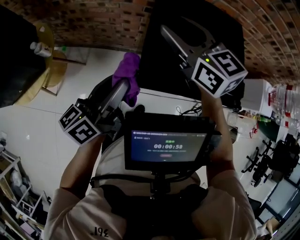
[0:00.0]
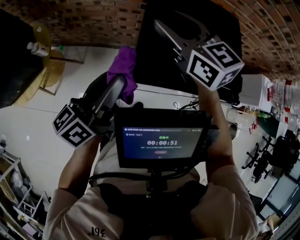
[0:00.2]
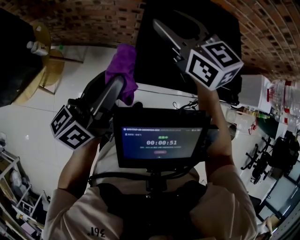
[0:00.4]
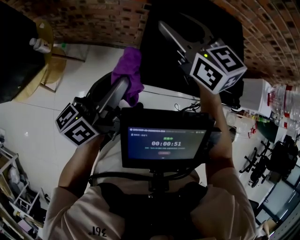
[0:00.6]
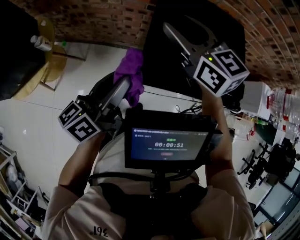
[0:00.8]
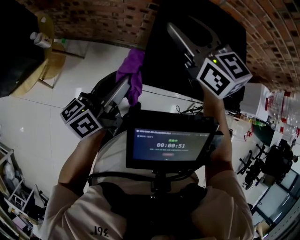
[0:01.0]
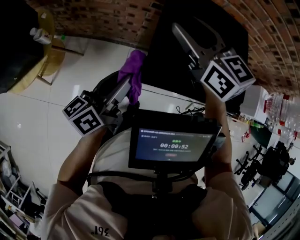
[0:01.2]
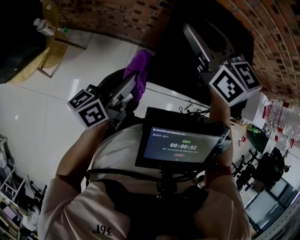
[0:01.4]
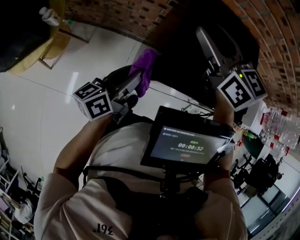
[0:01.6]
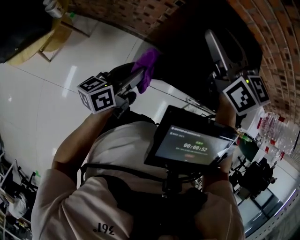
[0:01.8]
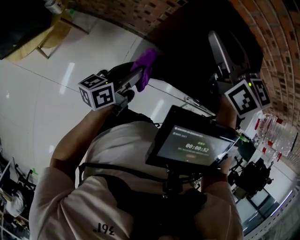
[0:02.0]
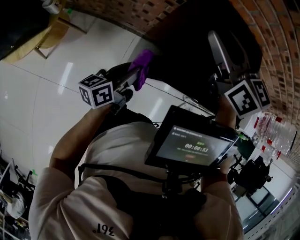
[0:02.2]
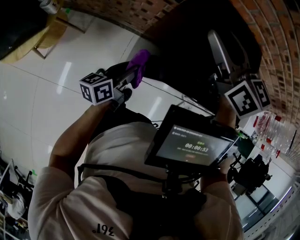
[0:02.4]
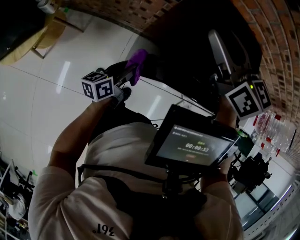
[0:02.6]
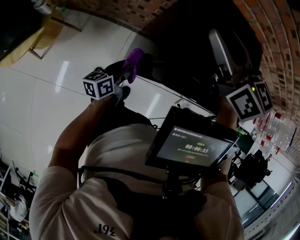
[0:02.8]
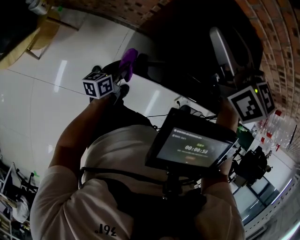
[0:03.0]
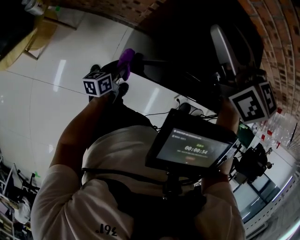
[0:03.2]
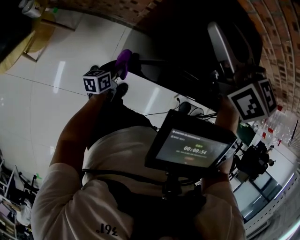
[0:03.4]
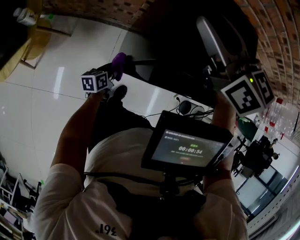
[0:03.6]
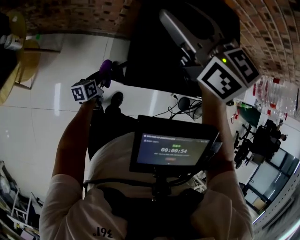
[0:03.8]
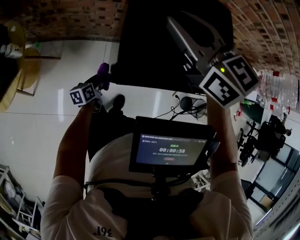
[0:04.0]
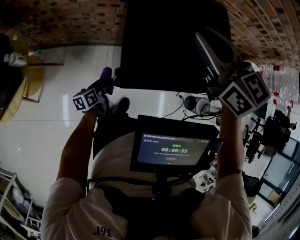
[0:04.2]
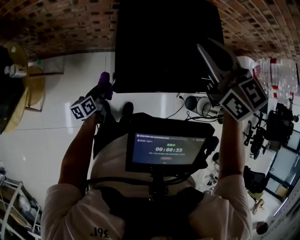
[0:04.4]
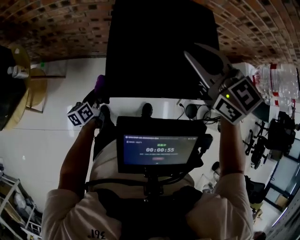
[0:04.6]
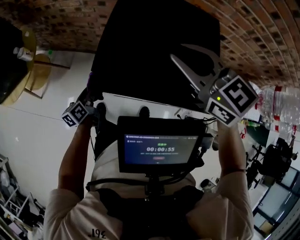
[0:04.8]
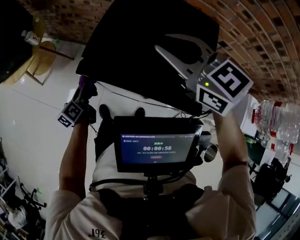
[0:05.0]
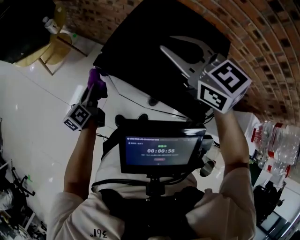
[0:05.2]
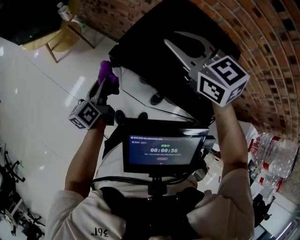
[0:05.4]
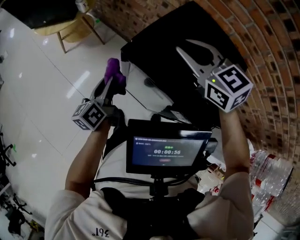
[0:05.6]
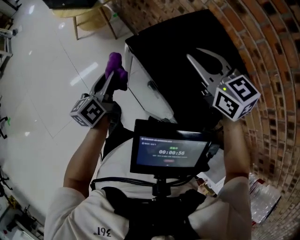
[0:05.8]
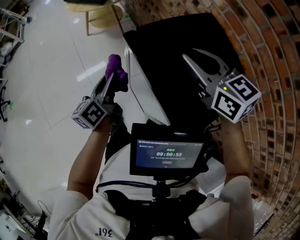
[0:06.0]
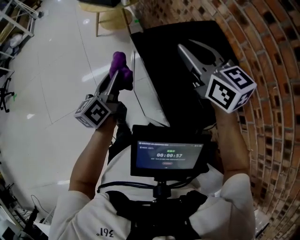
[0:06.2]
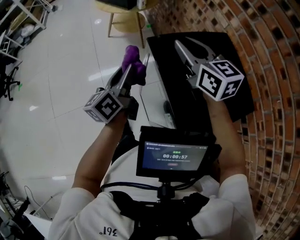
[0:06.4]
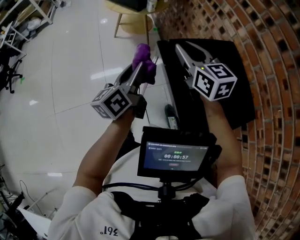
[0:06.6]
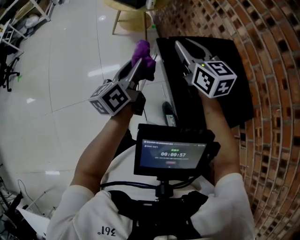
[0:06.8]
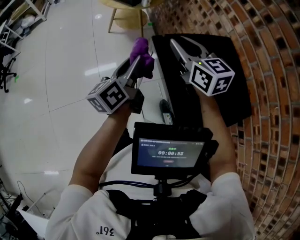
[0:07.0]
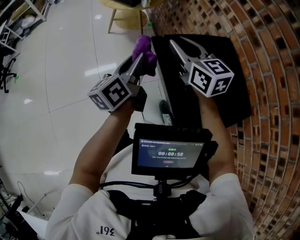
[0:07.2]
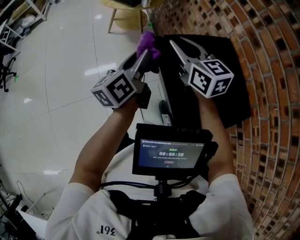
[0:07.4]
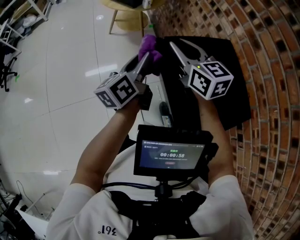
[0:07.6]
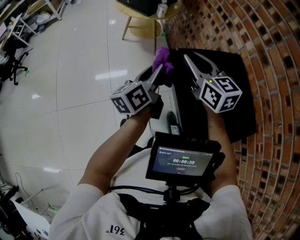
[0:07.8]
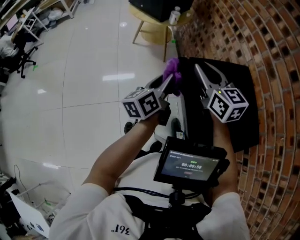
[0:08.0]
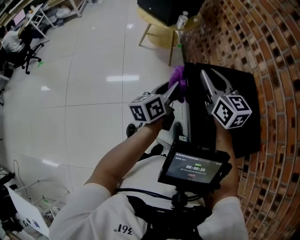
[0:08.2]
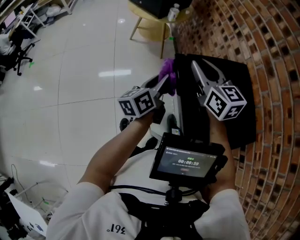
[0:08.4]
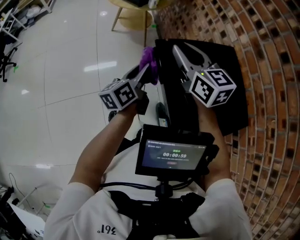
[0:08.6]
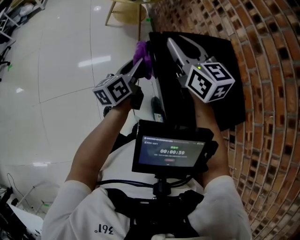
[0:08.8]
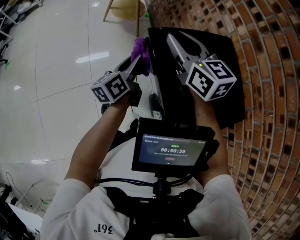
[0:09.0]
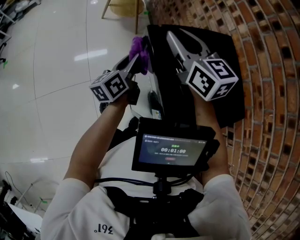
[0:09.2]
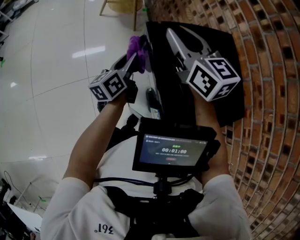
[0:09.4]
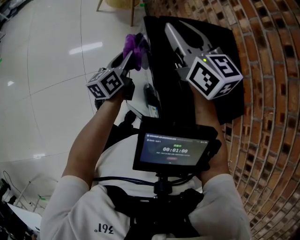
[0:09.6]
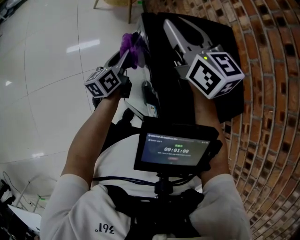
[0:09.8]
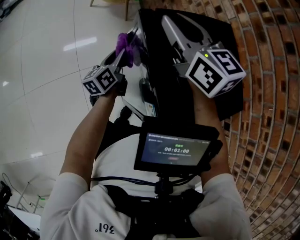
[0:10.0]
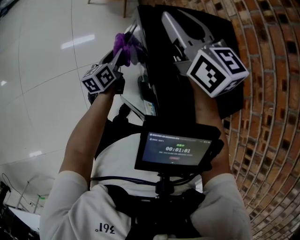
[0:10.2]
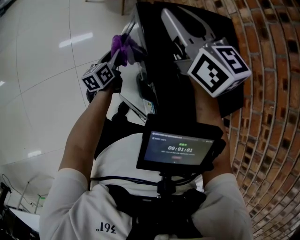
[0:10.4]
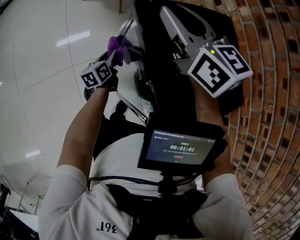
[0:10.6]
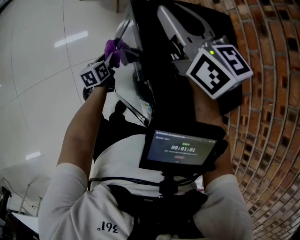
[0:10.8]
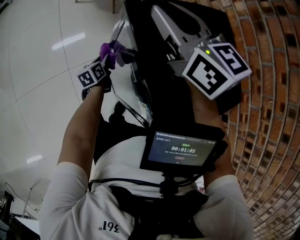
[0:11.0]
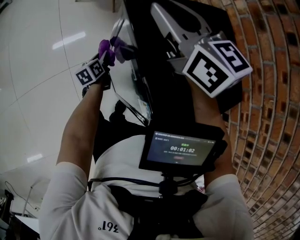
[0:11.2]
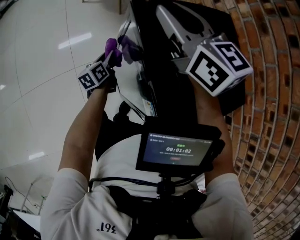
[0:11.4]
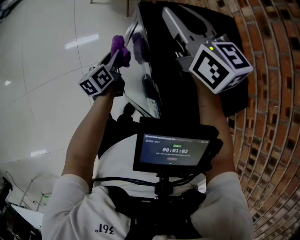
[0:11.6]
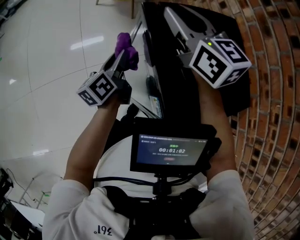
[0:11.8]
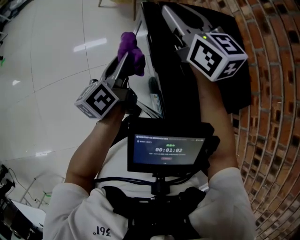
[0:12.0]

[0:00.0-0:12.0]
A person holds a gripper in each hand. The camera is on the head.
0:00.0 to 0:01.6: The left gripper moves downward, about 10 cm.
0:01.6 to 0:03.0: The left gripper heads downward, covering about 20 cm.
0:03.0 to 0:04.4: The right gripper travels to the right by some 15 cm, and closes up.
0:04.4 to 0:06.0: The left gripper is displaced upward by some 25 cm, and turns by roughly 80 degrees; the right gripper rotates approximately 60 degrees.
0:06.0 to 0:07.6: The left gripper moves upward, some 5 cm; the right gripper heads forward and to the left, covering about 10 cm.
0:07.6 to 0:09.0: The left gripper is displaced downward by roughly 10 cm.
0:09.0 to 0:10.4: The left gripper travels downward by approximately 15 cm.
0:10.4 to 0:12.0: The left gripper is displaced upward by approximately 20 cm.

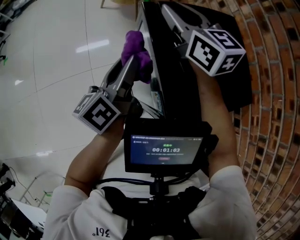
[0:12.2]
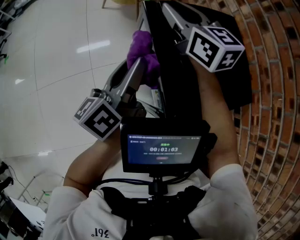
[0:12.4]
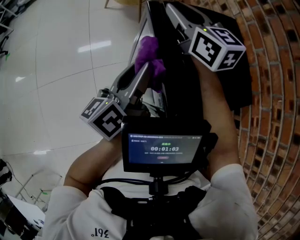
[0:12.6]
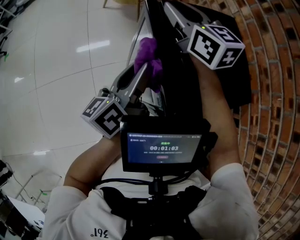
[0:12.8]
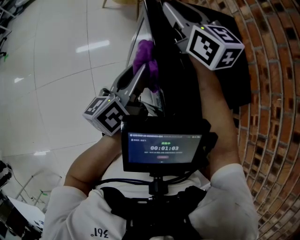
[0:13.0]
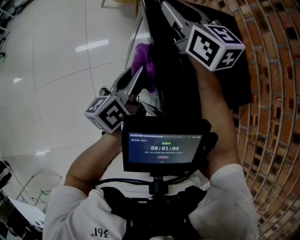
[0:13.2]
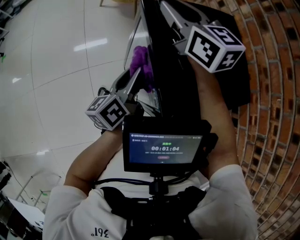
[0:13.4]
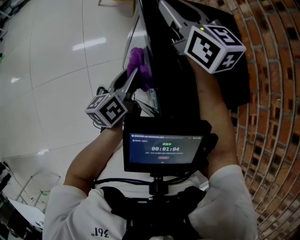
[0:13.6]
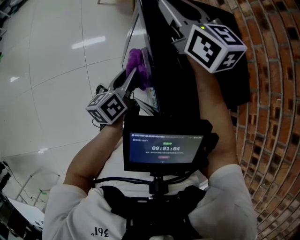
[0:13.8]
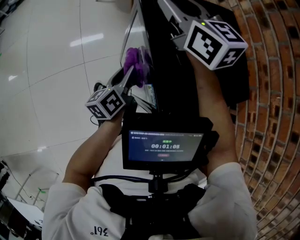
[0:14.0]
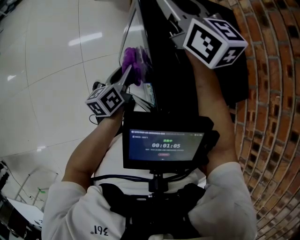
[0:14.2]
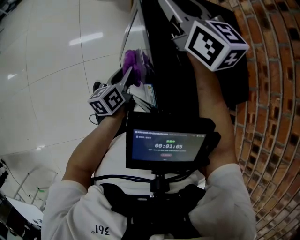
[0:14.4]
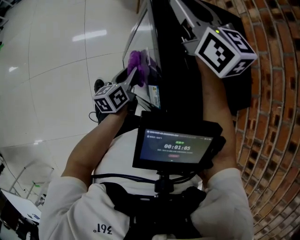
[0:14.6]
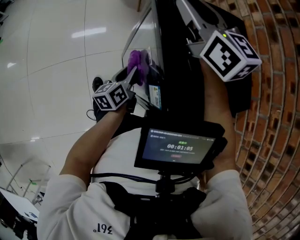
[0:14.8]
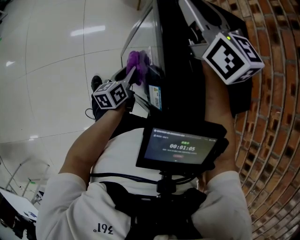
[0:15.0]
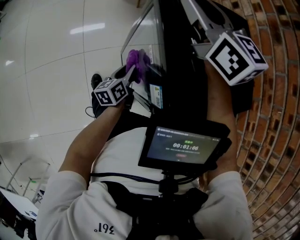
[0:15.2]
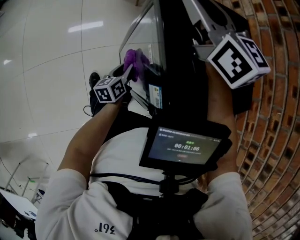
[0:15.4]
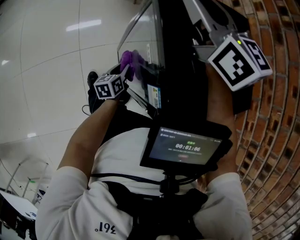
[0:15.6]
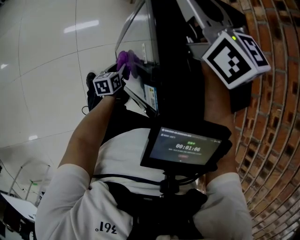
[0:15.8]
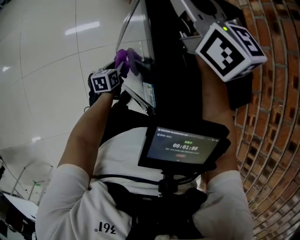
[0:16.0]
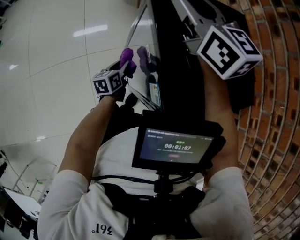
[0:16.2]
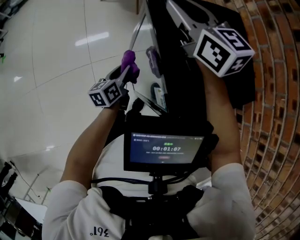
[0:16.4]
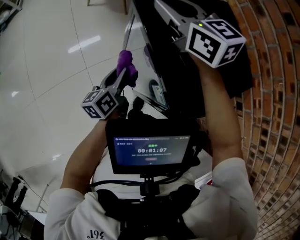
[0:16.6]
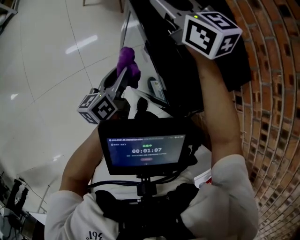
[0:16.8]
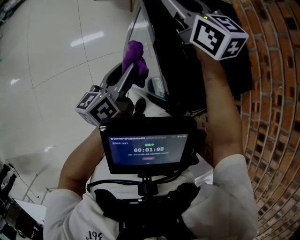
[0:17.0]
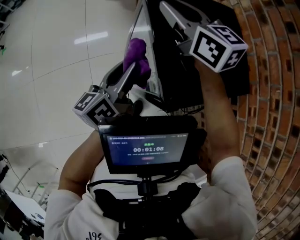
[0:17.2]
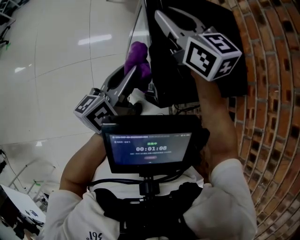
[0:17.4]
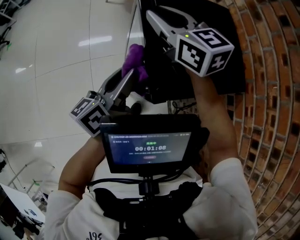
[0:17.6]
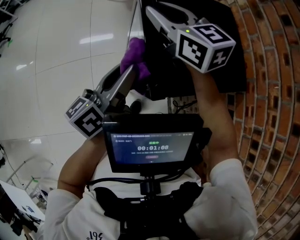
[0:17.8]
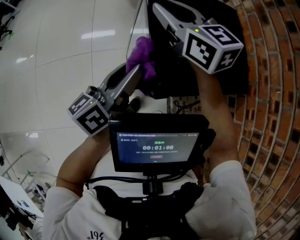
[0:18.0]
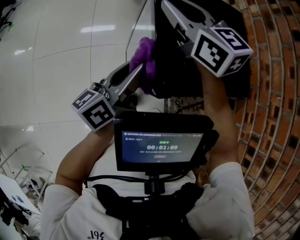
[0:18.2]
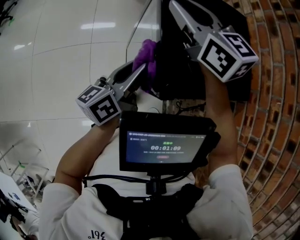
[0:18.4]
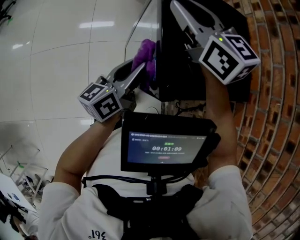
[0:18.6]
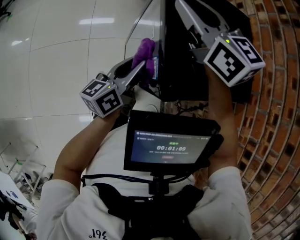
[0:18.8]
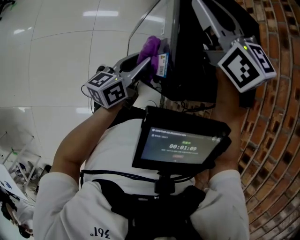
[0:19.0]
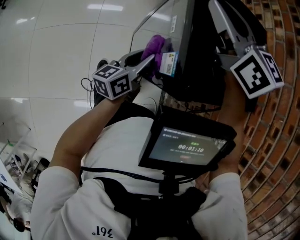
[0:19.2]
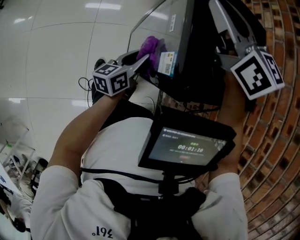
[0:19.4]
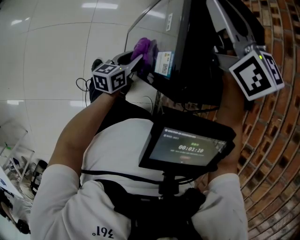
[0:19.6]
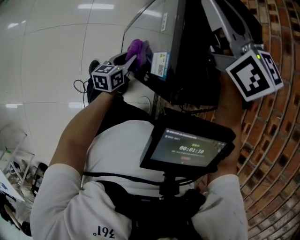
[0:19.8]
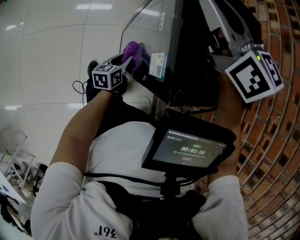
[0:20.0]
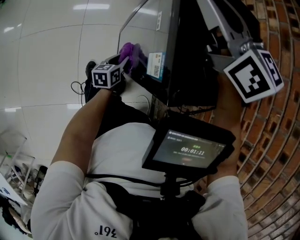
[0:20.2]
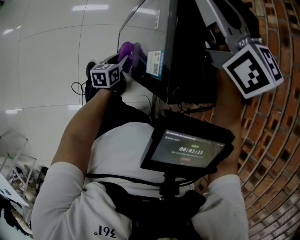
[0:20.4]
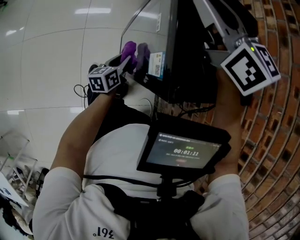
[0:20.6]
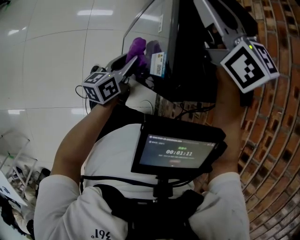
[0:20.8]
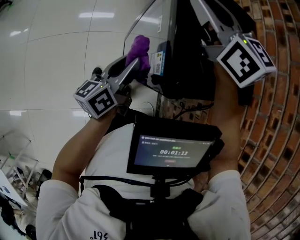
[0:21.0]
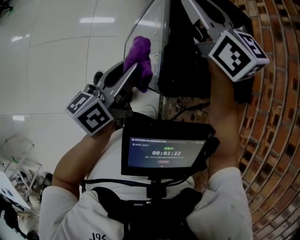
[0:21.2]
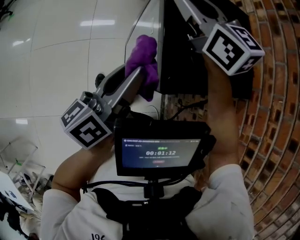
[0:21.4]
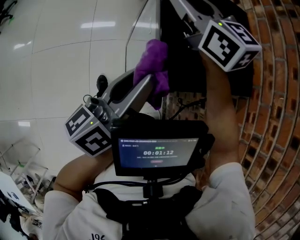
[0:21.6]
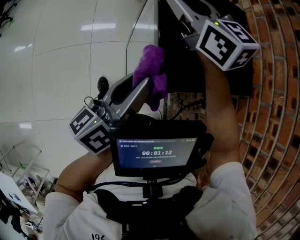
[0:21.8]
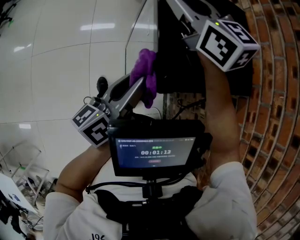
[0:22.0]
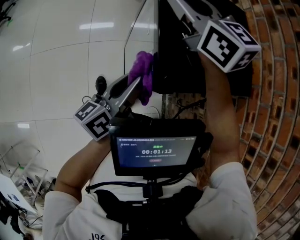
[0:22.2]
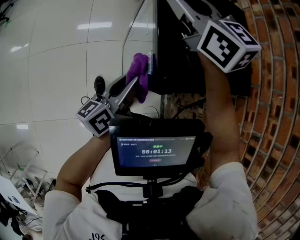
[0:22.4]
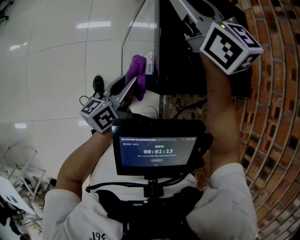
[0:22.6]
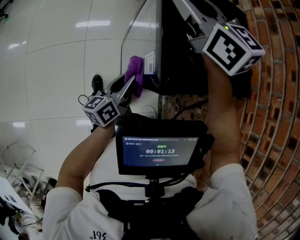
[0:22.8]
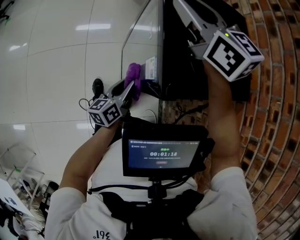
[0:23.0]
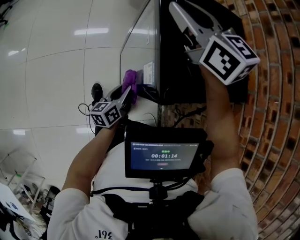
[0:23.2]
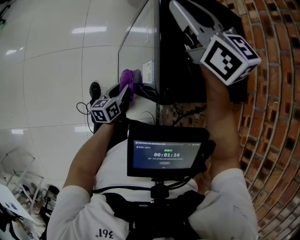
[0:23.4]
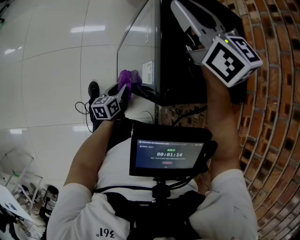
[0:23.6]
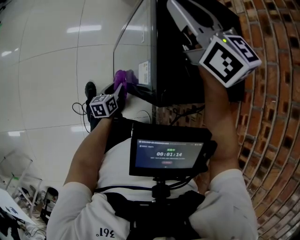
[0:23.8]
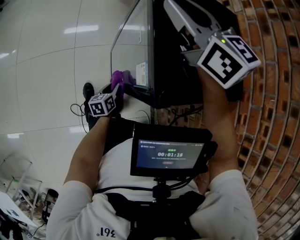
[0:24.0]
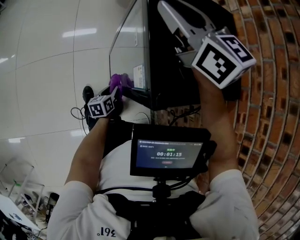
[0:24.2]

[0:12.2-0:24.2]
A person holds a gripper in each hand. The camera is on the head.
0:12.2 to 0:13.8: The left gripper shifts about 10 cm downward.
0:13.8 to 0:15.2: The left gripper goes some 15 cm downward.
0:15.2 to 0:16.6: The left gripper travels upward by roughly 10 cm.
0:16.6 to 0:18.2: The right gripper goes about 10 cm backward. The left gripper is displaced upward and backward by about 15 cm, and swivels about 20 degrees.
0:18.2 to 0:19.8: The left gripper travels downward by approximately 25 cm, and swivels some 30 degrees.
0:19.8 to 0:21.2: The left gripper travels upward by some 25 cm, and turns by about 30 degrees.
0:21.2 to 0:22.6: The left gripper moves downward, approximately 10 cm.
0:22.6 to 0:24.2: The left gripper heads downward, covering about 25 cm, and angles its fingers downward, by roughly 30 degrees.
